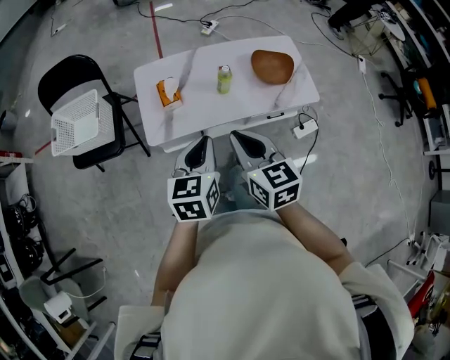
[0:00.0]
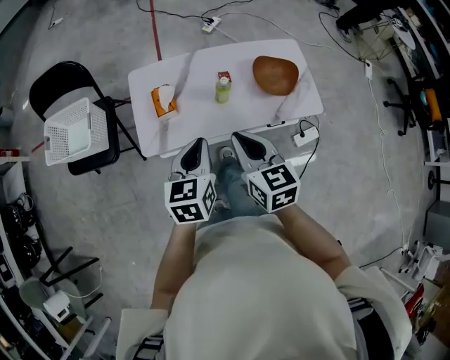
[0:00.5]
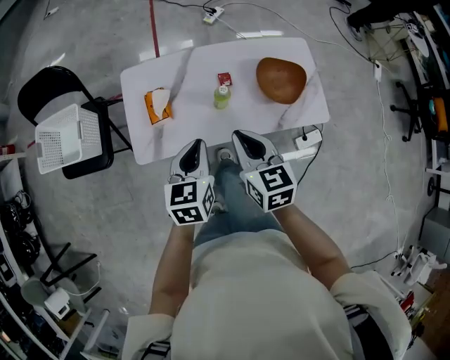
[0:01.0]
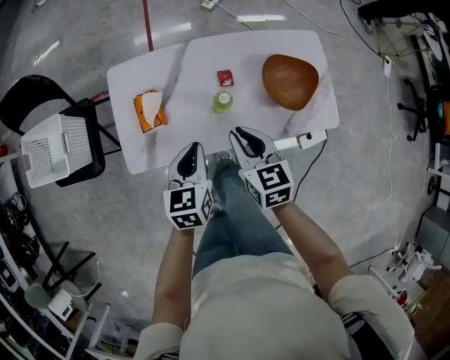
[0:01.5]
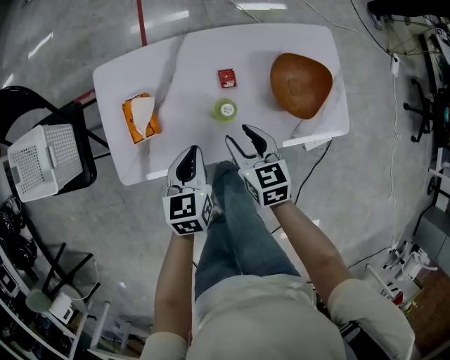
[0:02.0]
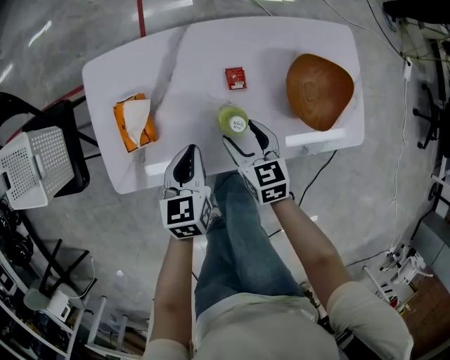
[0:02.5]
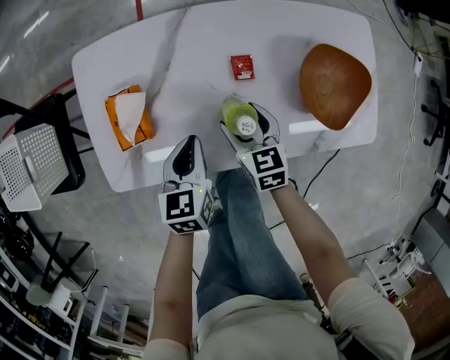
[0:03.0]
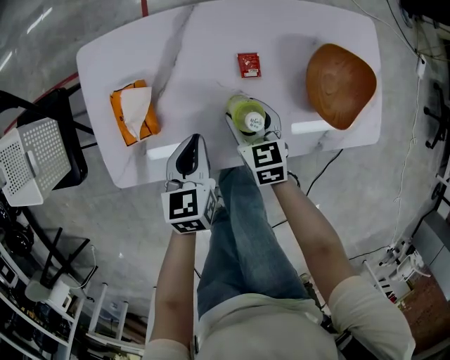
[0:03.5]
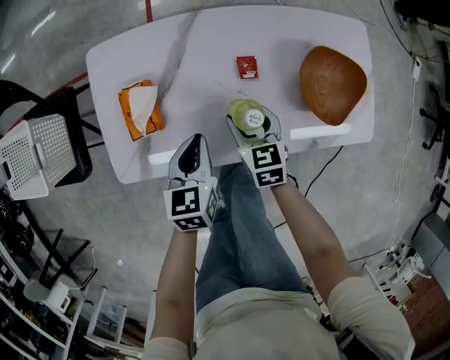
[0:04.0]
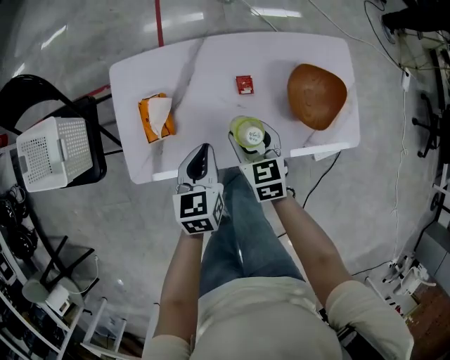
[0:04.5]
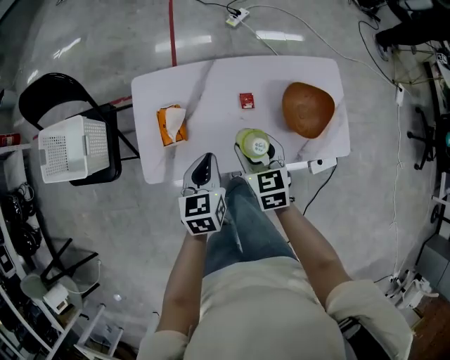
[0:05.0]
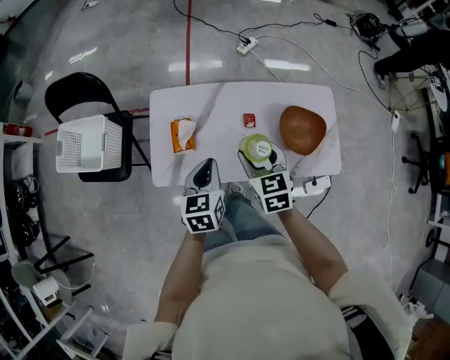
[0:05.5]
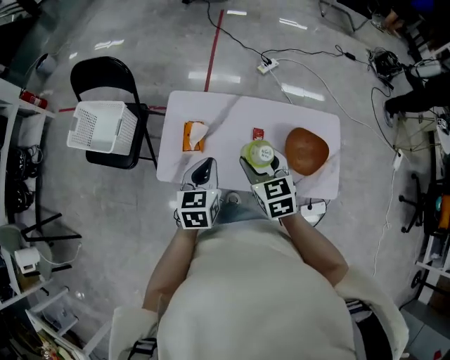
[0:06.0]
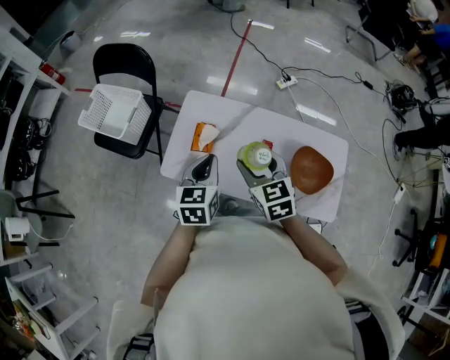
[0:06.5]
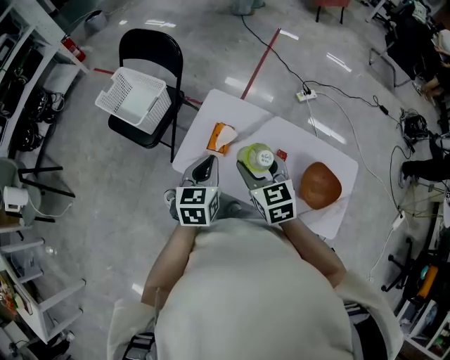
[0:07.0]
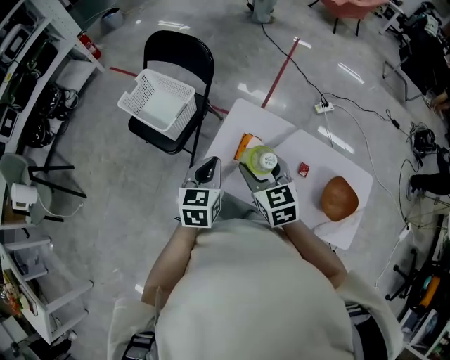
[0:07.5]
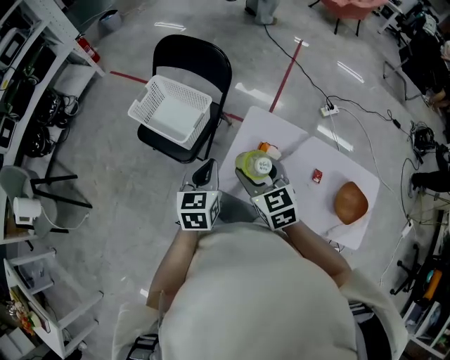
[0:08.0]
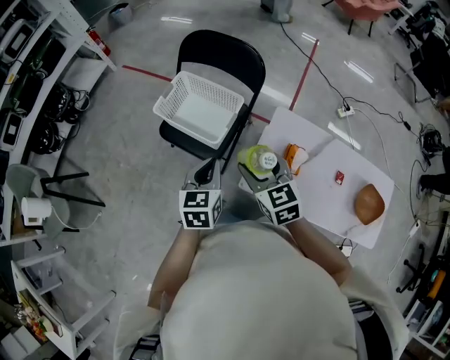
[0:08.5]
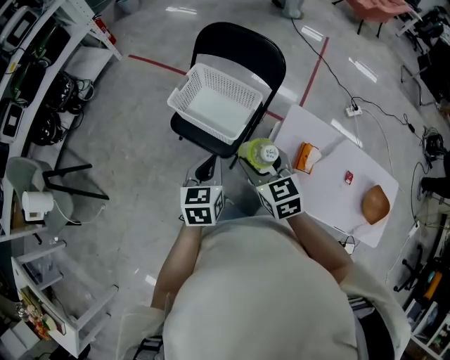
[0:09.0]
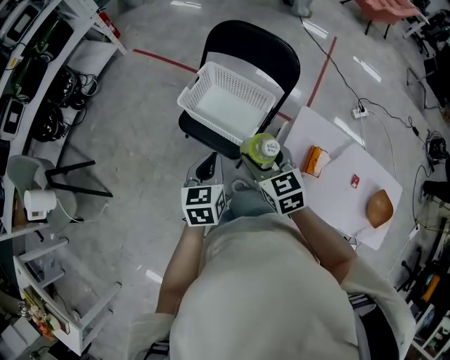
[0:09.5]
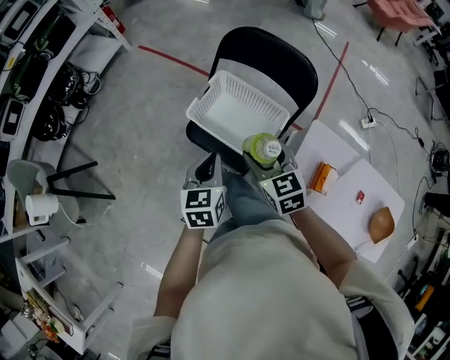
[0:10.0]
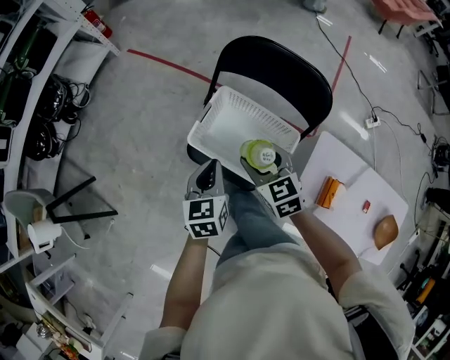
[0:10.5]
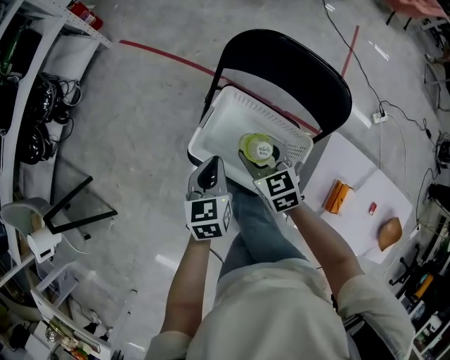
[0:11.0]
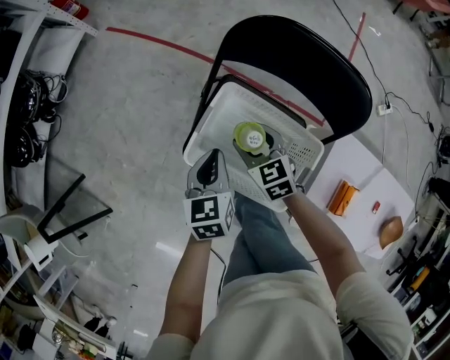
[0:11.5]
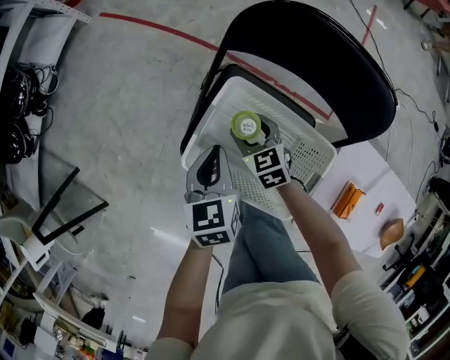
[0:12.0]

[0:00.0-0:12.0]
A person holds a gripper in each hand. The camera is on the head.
0:00.0 to 0:02.0: The grippers both shift downward and forward by roughly 35 cm. The right gripper opens.
0:02.0 to 0:04.0: The left gripper heads downward, covering about 5 cm; the right gripper goes some 15 cm downward and forward.
0:04.0 to 0:06.0: The grippers both shift upward by approximately 30 cm. The right gripper turns by about 20 degrees.
0:06.0 to 0:08.0: Both grippers travel together to the left, about 30 cm. The right gripper changes its angle by about 20 degrees.
0:08.0 to 0:10.0: Both grippers travel together to the left and forward, about 30 cm.
0:10.0 to 0:12.0: The right gripper goes about 40 cm downward and forward. Meanwhile the left gripper goes some 30 cm forward and downward.

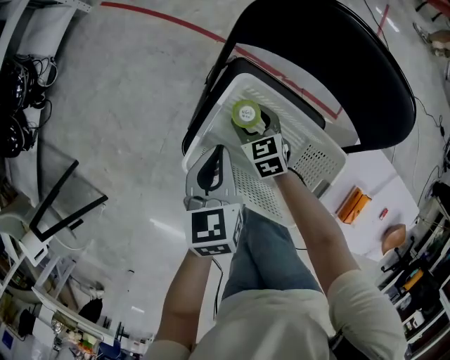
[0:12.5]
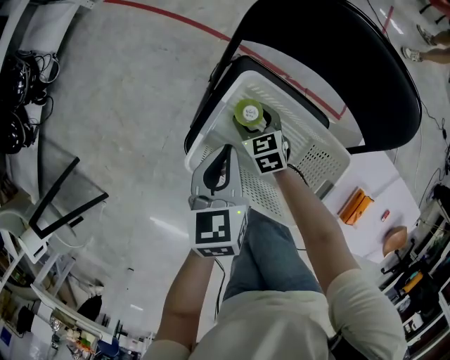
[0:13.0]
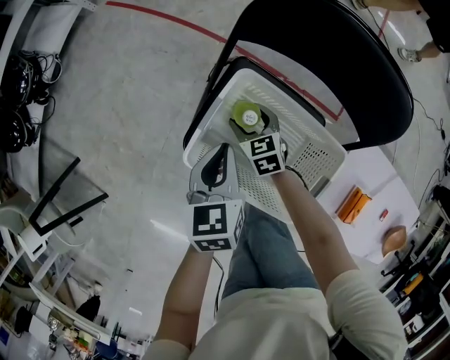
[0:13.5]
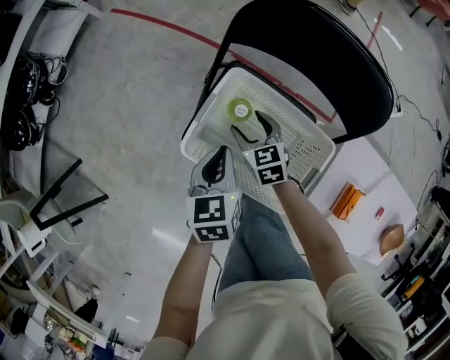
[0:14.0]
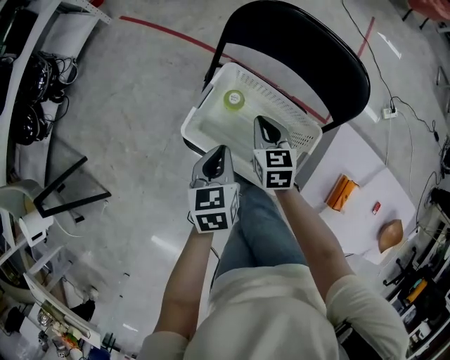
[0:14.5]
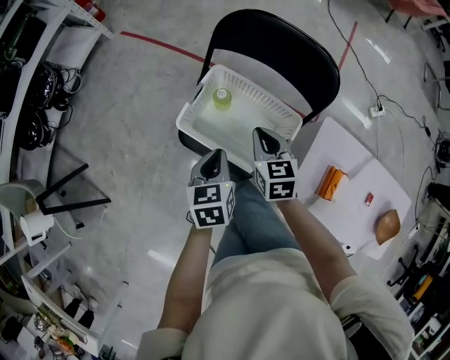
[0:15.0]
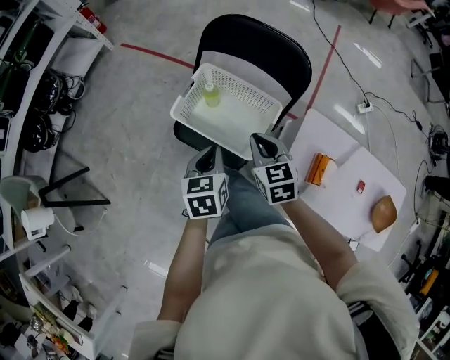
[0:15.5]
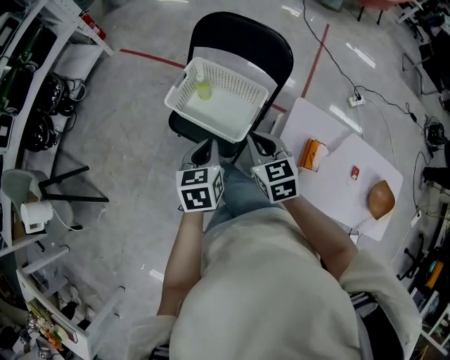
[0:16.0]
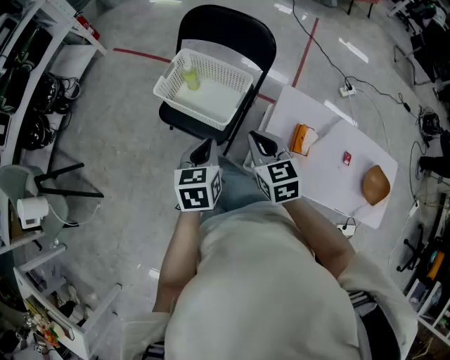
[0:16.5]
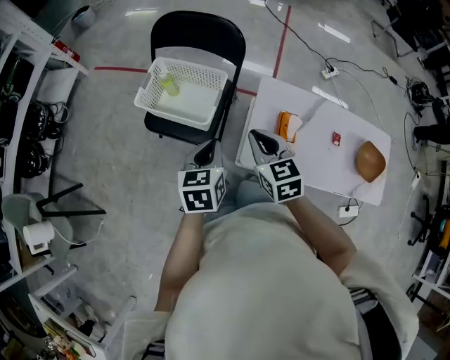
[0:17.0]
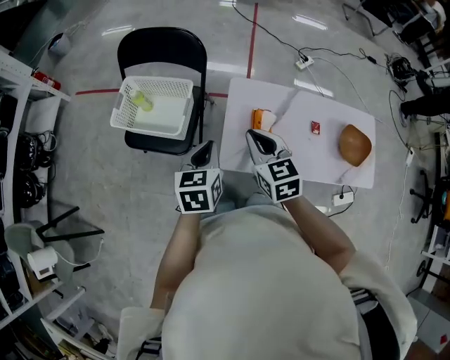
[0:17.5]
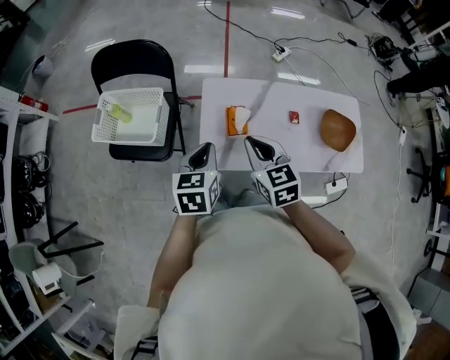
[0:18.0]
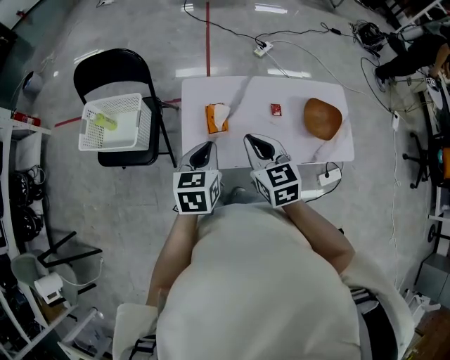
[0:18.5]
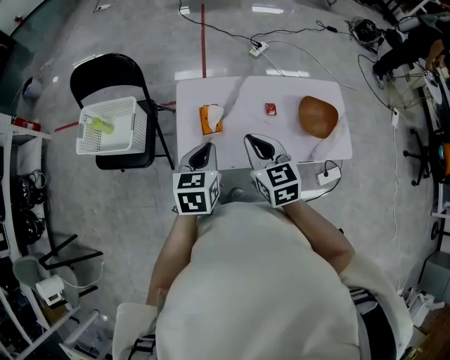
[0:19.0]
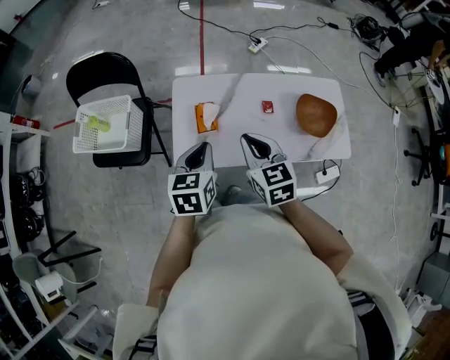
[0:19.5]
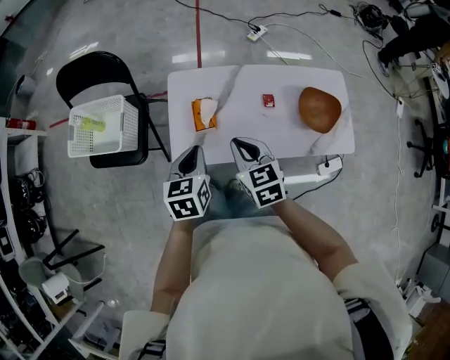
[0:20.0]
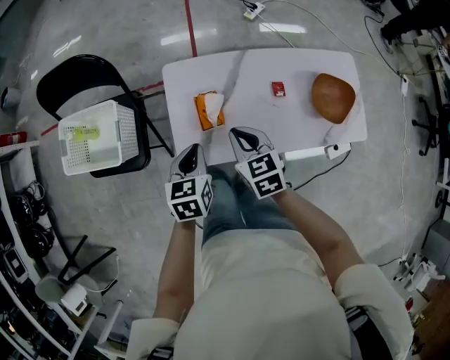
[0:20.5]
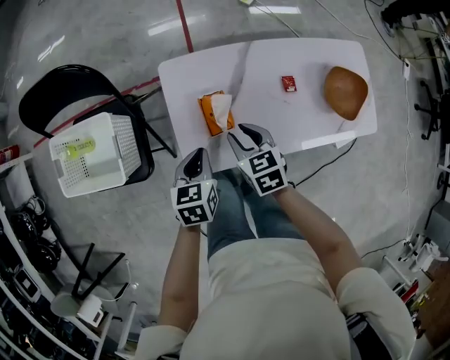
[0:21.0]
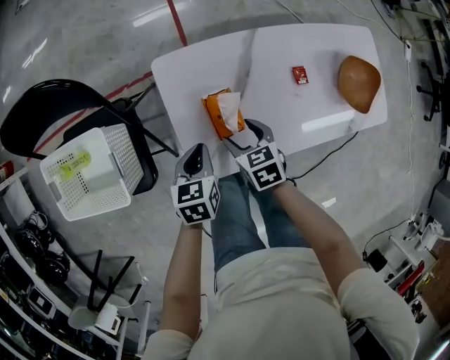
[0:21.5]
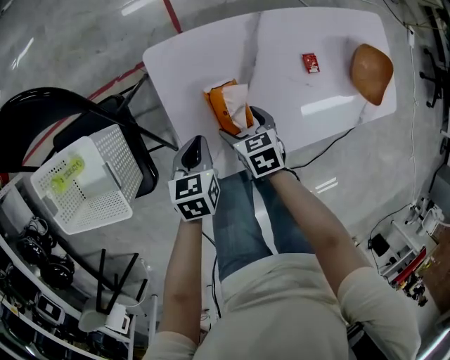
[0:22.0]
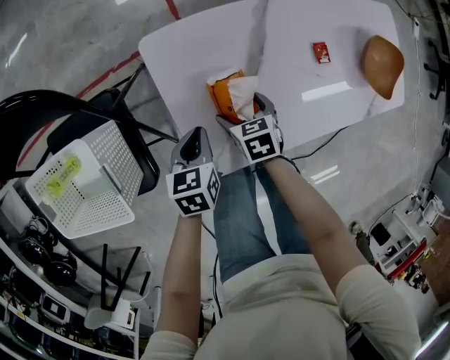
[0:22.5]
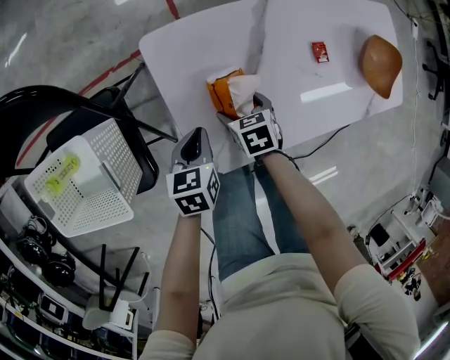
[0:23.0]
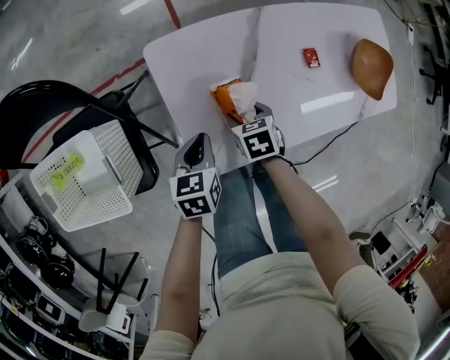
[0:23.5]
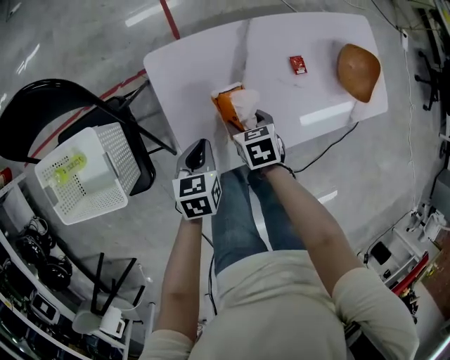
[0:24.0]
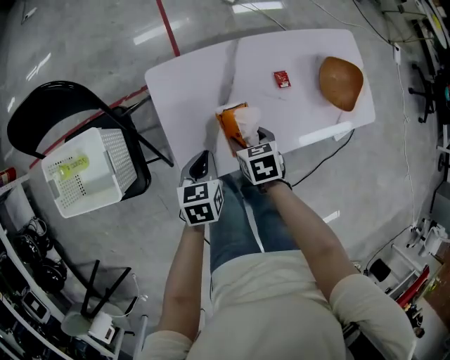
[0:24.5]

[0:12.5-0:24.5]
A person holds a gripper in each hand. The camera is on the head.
0:12.5 to 0:14.5: The right gripper travels upward and backward by roughly 15 cm, and closes, while the left gripper shifts some 10 cm backward.
0:14.5 to 0:16.5: The left gripper is displaced backward, upward and to the right by some 30 cm. The right gripper travels backward and upward by approximately 35 cm.
0:16.5 to 0:18.5: The right gripper ends up roughly 35 cm from where it was, and changes its angle by about 20 degrees. The left gripper moves some 35 cm, and turns by roughly 30 degrees.
0:18.5 to 0:20.5: The two grippers go some 15 cm downward and forward.
0:20.5 to 0:22.5: The right gripper shifts roughly 30 cm downward, turns by some 30 degrees, and opens its fingers; the left gripper heads downward and forward, covering some 25 cm.
0:22.5 to 0:24.5: Both grippers travel together upward, to the right and backward, approximately 15 cm.

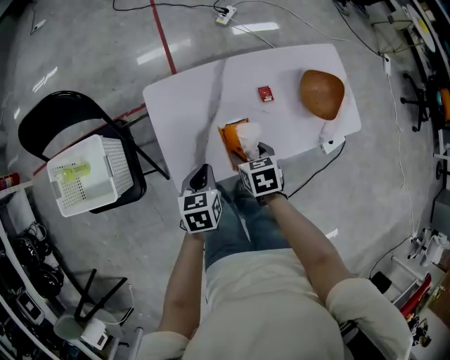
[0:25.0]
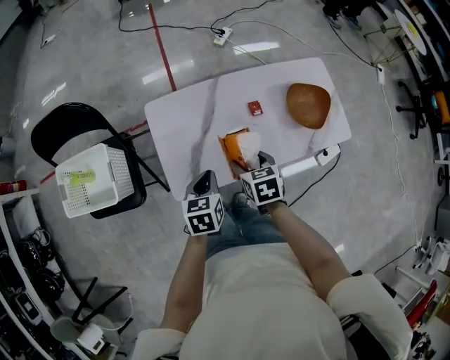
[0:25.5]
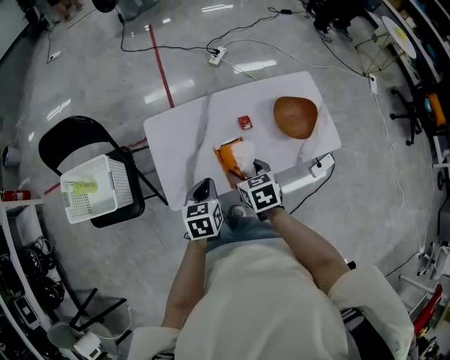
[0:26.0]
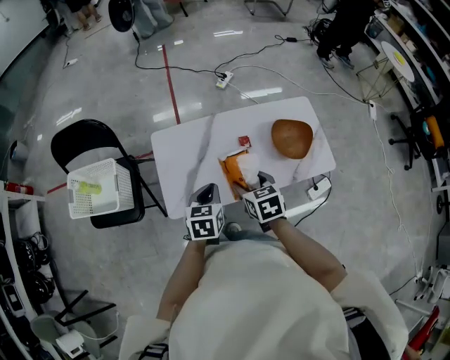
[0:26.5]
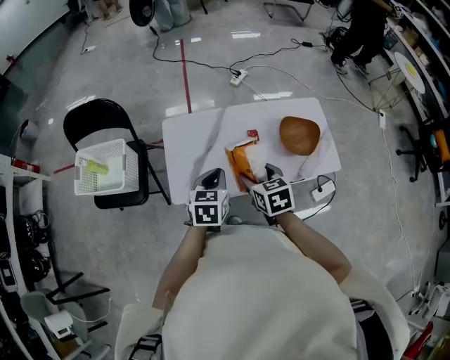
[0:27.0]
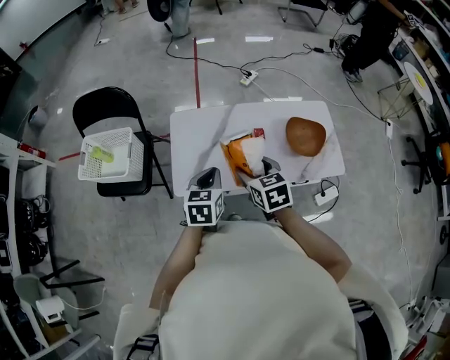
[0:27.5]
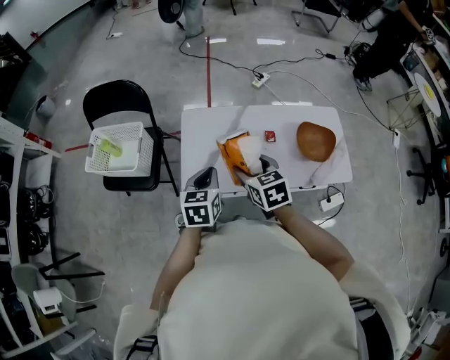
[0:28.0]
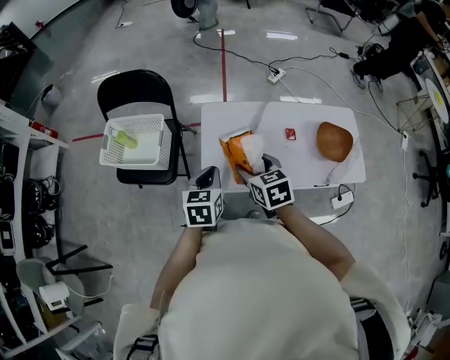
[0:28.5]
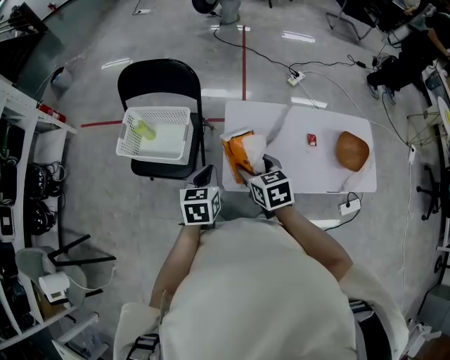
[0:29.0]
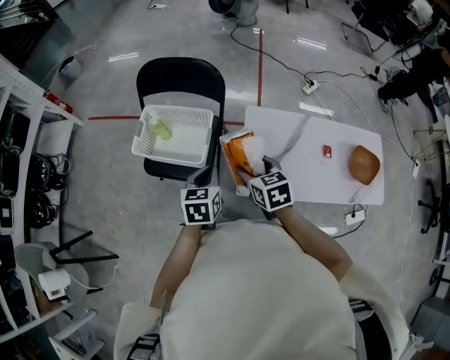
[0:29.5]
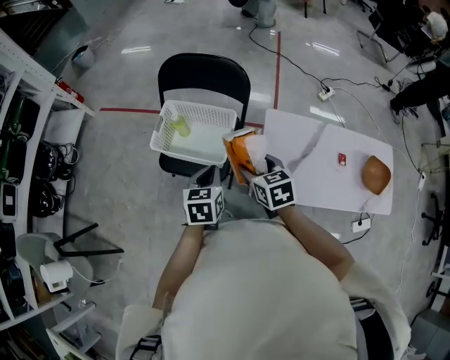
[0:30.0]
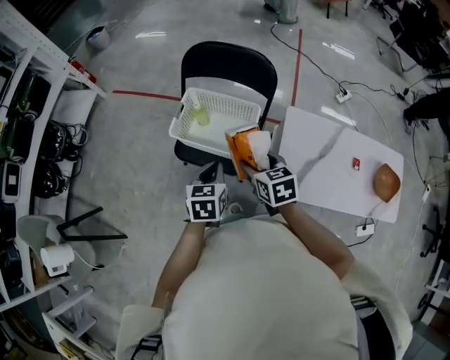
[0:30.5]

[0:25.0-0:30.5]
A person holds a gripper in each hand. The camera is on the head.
0:25.0 to 0:27.0: The right gripper moves upward, to the right and backward, about 20 cm, and rotates some 20 degrees, while the left gripper is displaced upward and to the right by approximately 20 cm.
0:27.0 to 0:28.5: The two grippers go about 15 cm to the left.
0:28.5 to 0:30.5: The grippers both shift to the left by about 35 cm.
